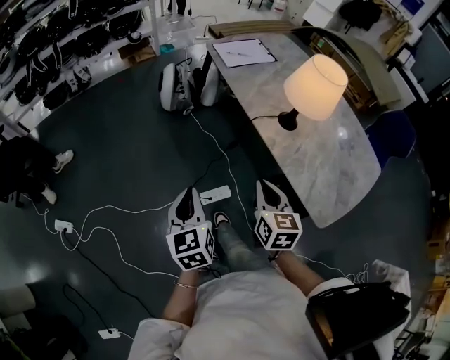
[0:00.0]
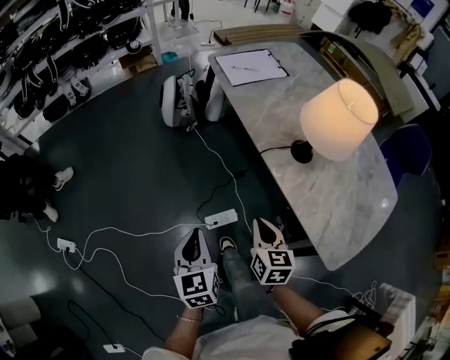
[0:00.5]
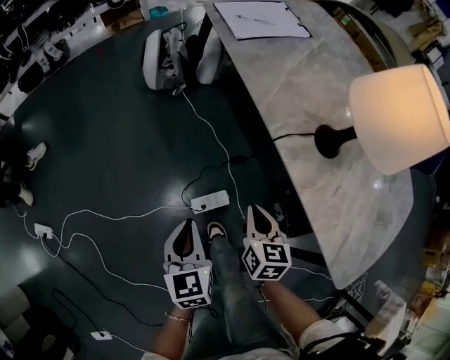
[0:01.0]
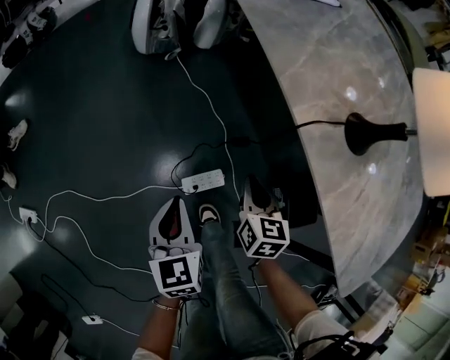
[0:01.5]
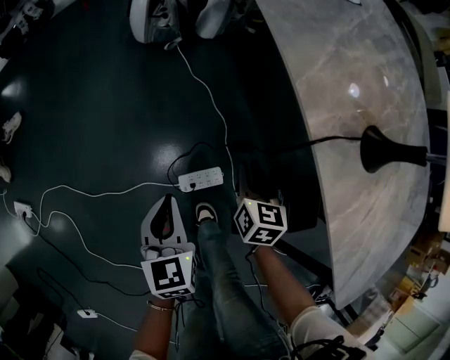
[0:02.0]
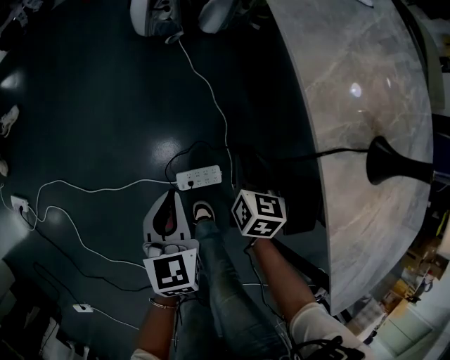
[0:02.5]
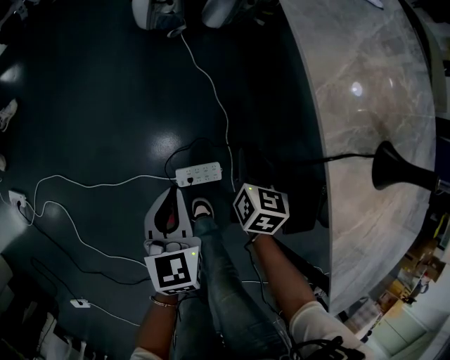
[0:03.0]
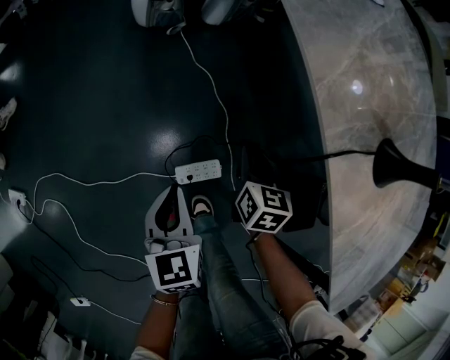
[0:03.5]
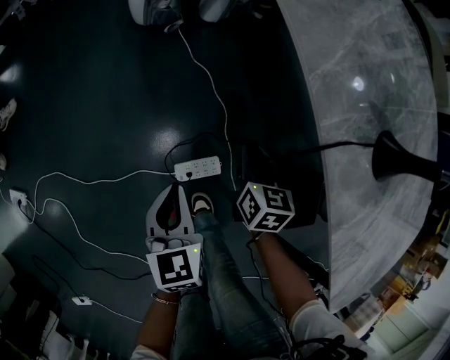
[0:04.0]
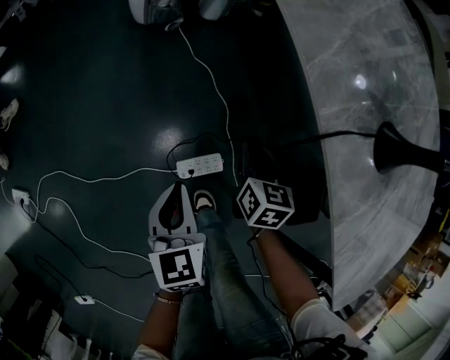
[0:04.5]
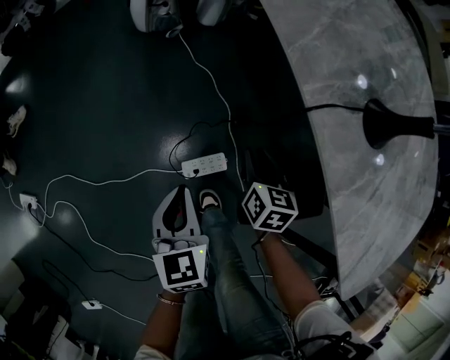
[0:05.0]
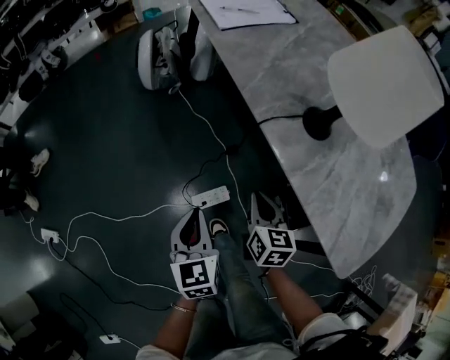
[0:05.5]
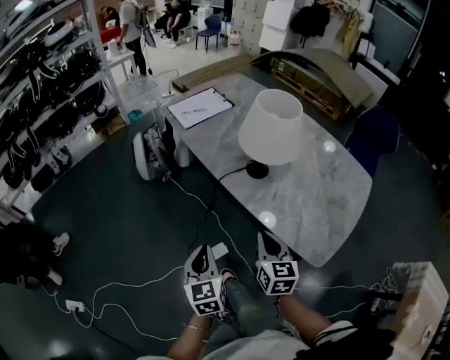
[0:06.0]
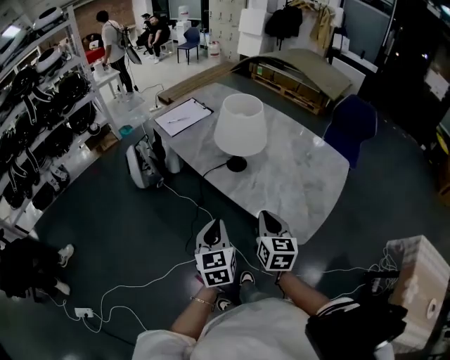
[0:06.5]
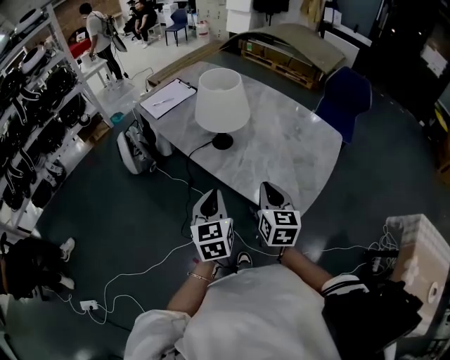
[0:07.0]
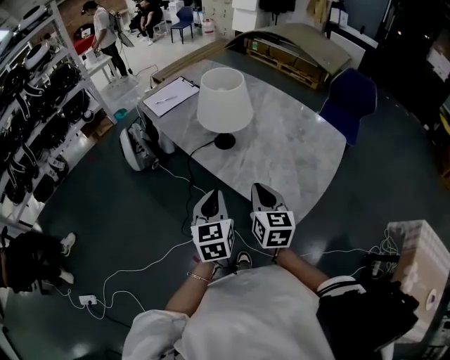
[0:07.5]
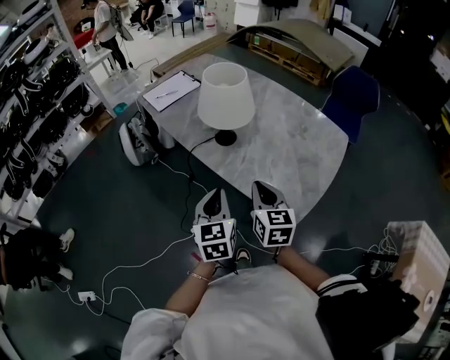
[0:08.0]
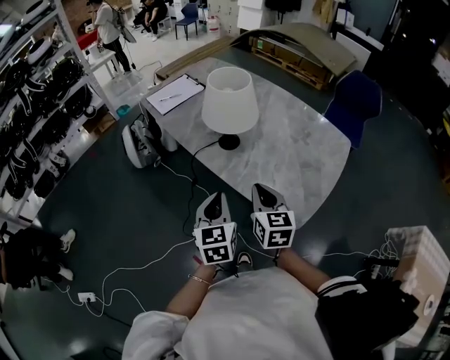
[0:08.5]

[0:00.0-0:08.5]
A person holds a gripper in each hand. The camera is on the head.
0:00.0 to 0:02.0: Both grippers travel together downward and forward, approximately 40 cm. The right gripper opens up.
0:02.0 to 0:04.0: The grippers make only small movements.
0:04.0 to 0:06.5: The right gripper moves upward and backward, roughly 60 cm, and rotates some 30 degrees; the left gripper shifts roughly 50 cm upward, backward and to the right, and changes its angle by roughly 30 degrees.
0:06.5 to 0:08.5: The left gripper shifts about 5 cm to the right.

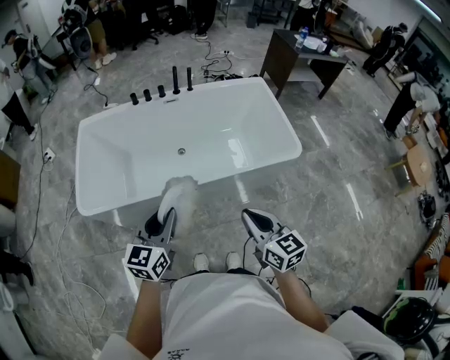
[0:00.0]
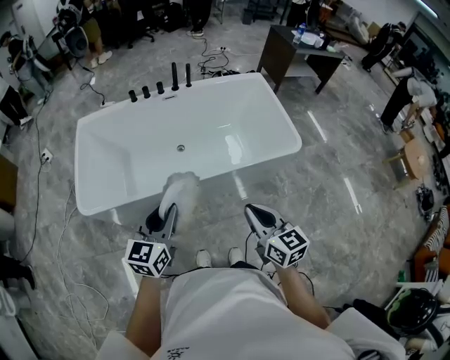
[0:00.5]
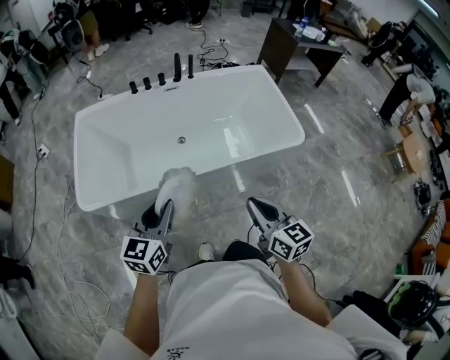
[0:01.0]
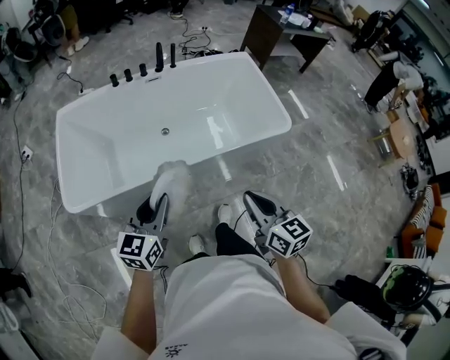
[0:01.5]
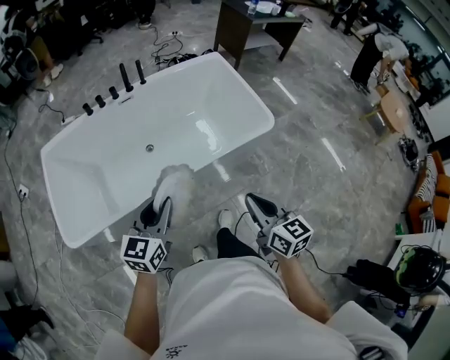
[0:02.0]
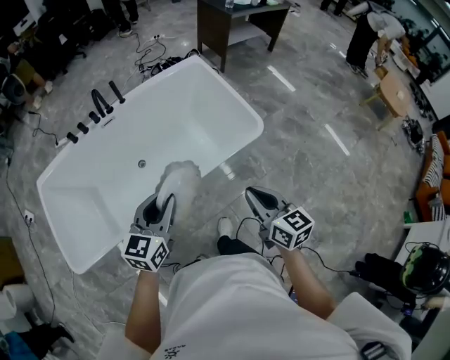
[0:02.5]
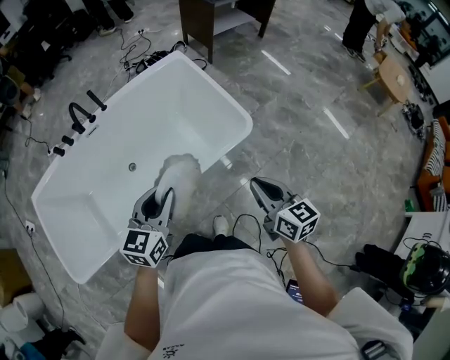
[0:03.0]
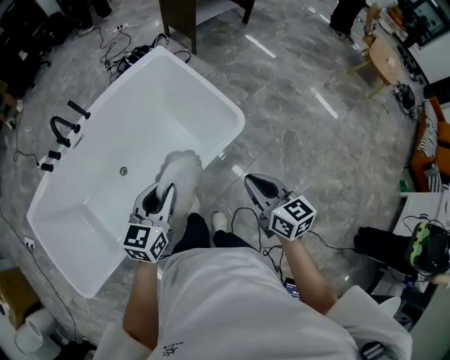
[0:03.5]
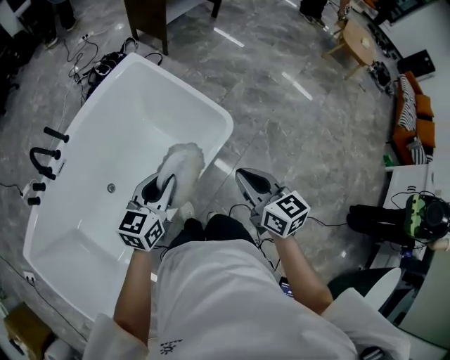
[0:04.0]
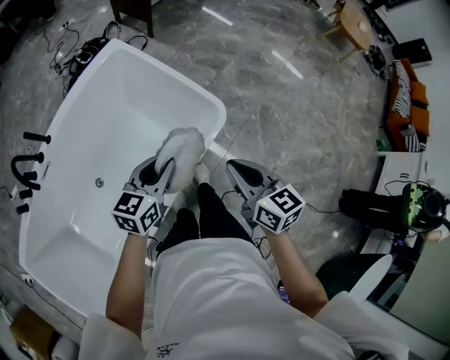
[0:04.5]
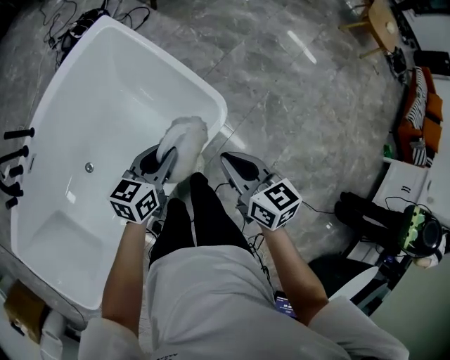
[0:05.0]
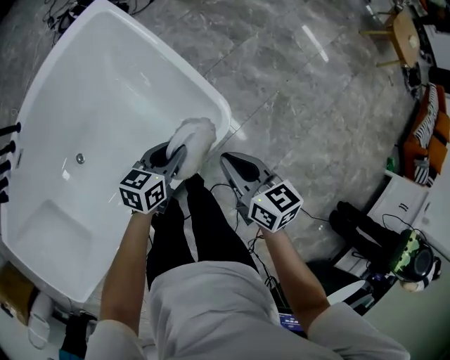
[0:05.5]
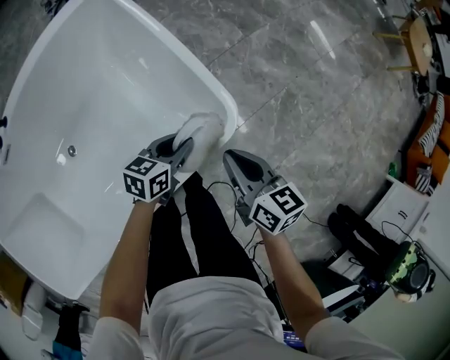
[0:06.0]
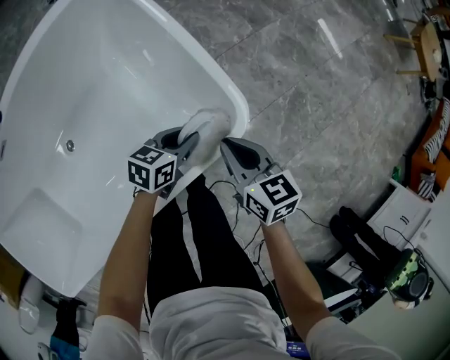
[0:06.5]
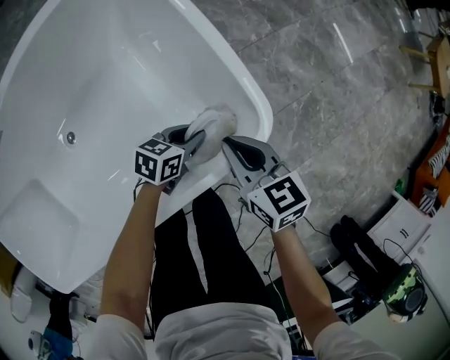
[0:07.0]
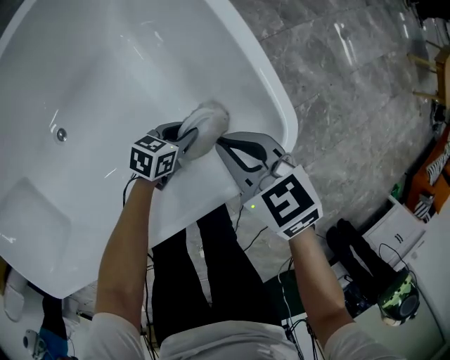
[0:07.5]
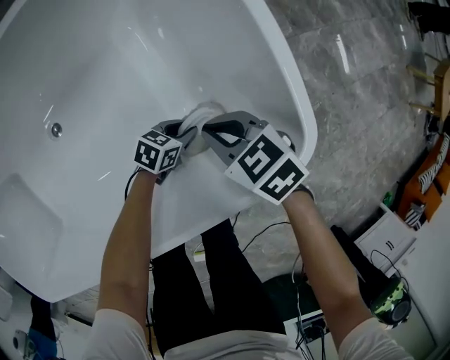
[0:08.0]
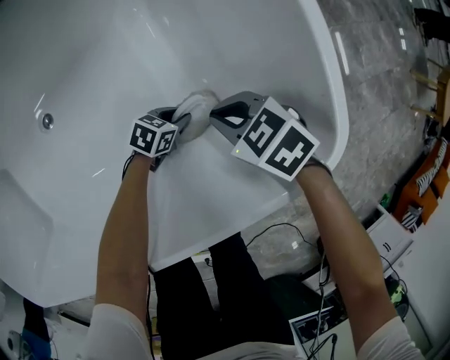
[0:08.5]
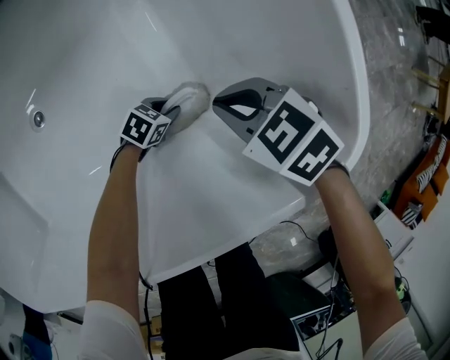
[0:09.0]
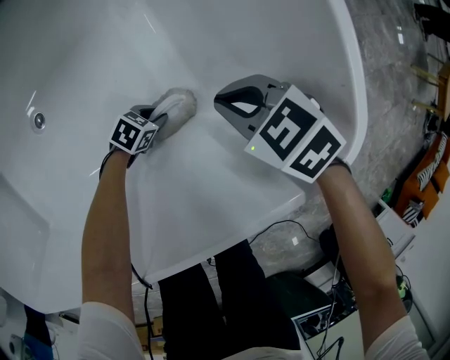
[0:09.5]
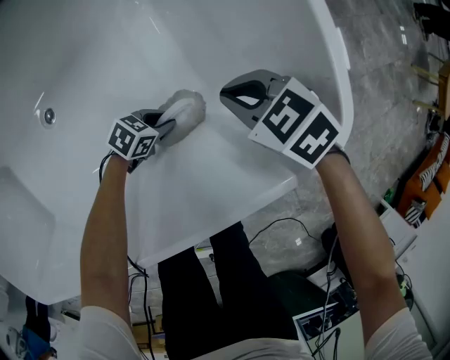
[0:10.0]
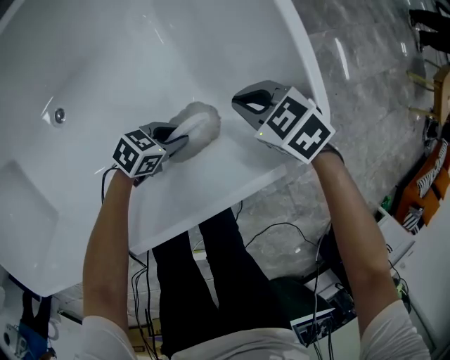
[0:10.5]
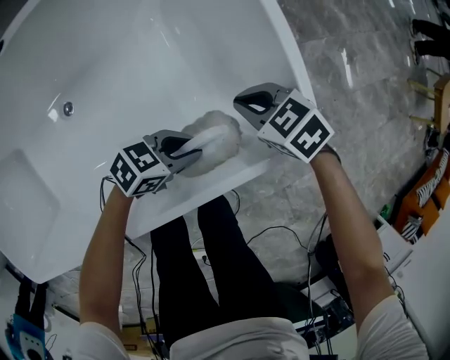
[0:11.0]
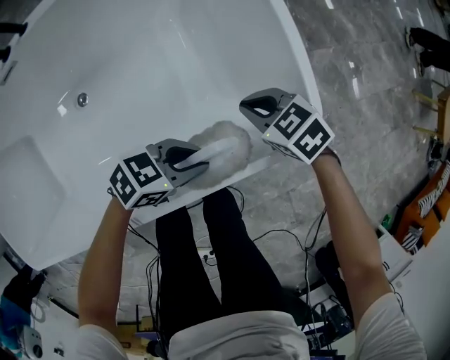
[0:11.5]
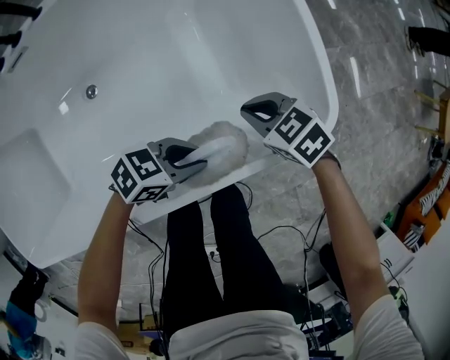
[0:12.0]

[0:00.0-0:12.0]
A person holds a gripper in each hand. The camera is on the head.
0:00.0 to 0:02.0: The right gripper changes place by roughly 5 cm.
0:02.0 to 0:04.0: The right gripper shifts by roughly 30 cm, and changes its angle by roughly 20 degrees.
0:04.0 to 0:06.0: The right gripper shifts approximately 25 cm downward.
0:06.0 to 0:08.0: The right gripper shifts some 20 cm downward, and swivels approximately 60 degrees.
0:10.0 to 0:12.0: The right gripper shifts some 10 cm upward.

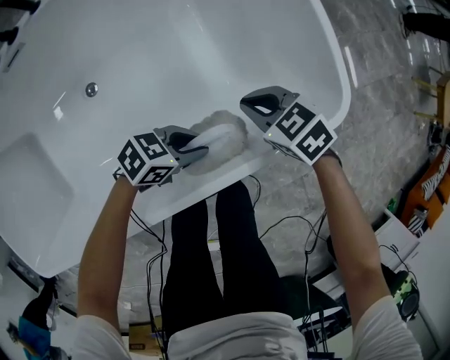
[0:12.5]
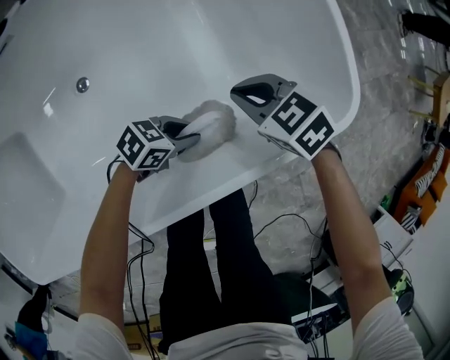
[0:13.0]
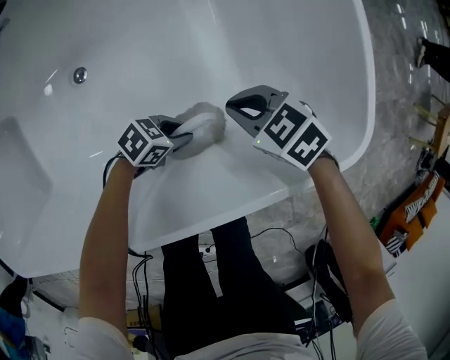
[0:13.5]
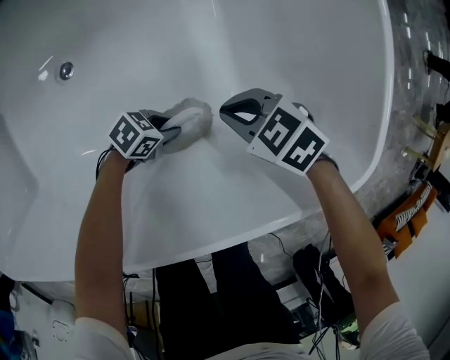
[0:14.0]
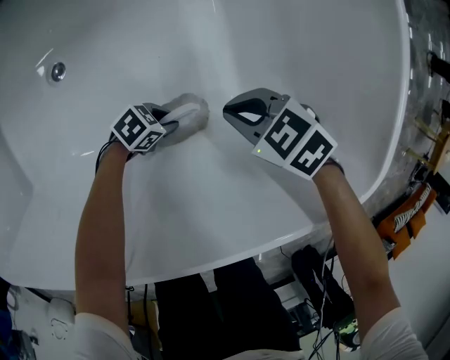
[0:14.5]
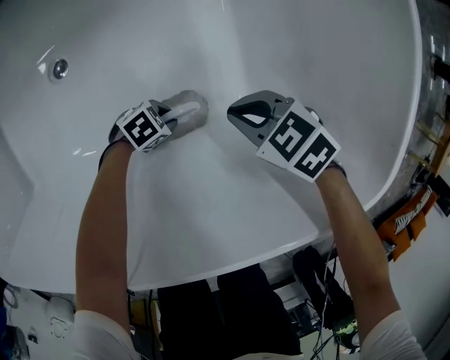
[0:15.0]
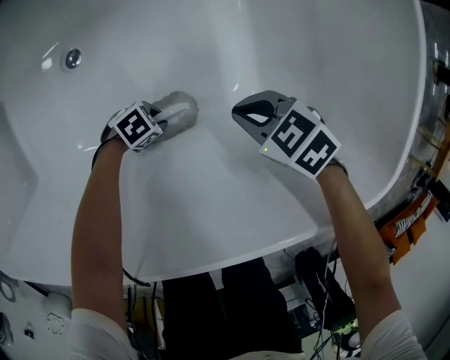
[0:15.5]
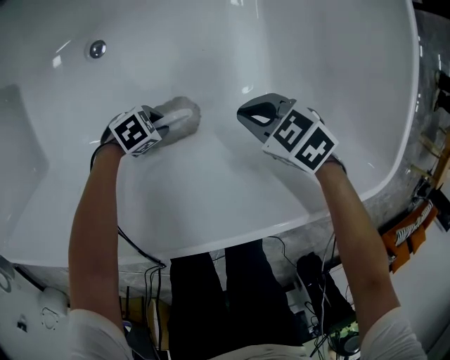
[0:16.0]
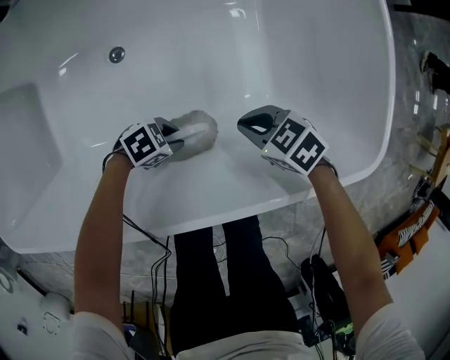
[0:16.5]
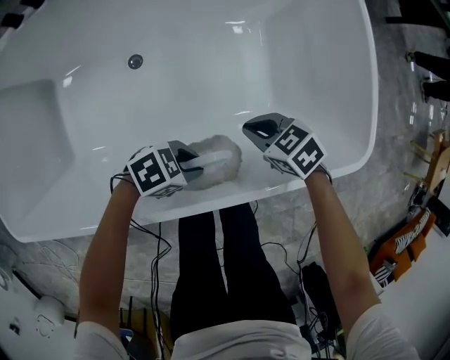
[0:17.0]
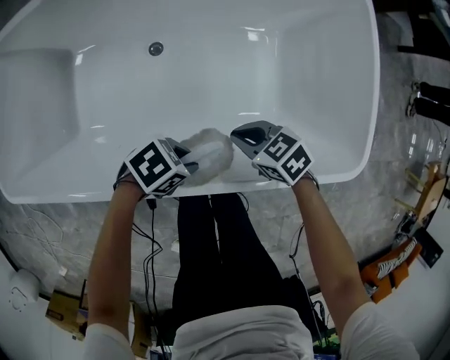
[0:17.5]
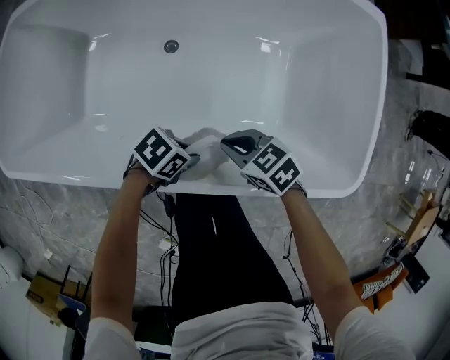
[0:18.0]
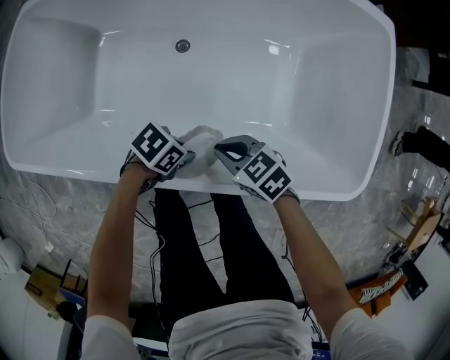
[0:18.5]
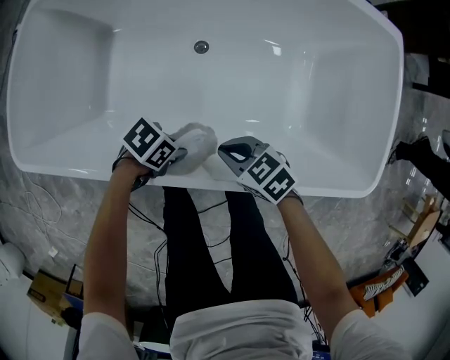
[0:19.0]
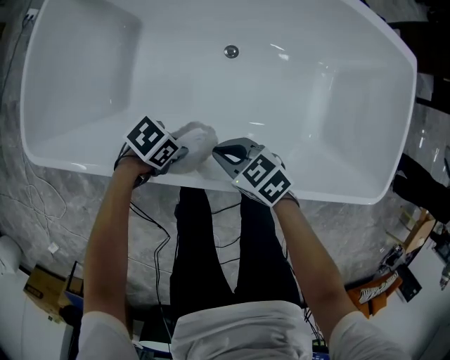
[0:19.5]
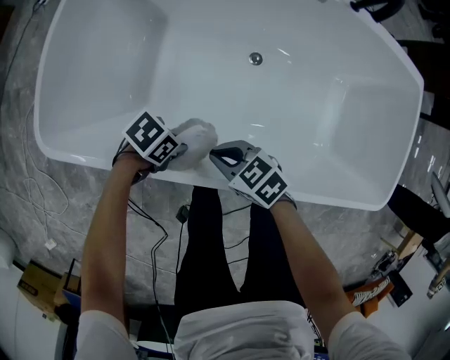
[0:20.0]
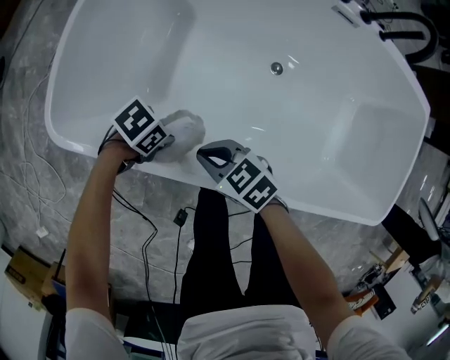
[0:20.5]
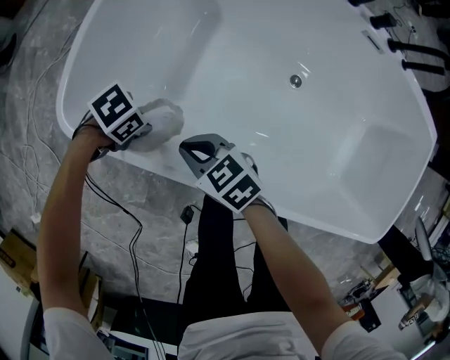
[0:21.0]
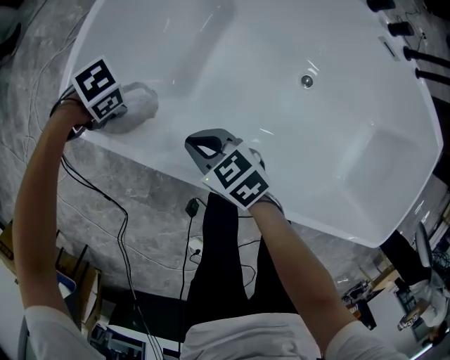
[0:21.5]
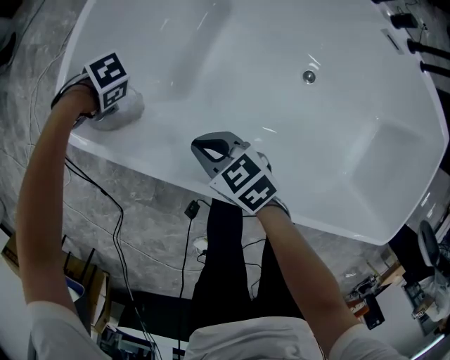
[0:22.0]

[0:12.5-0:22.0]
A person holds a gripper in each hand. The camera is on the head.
0:12.5 to 0:14.5: The right gripper shifts about 15 cm downward, and turns by some 20 degrees.
0:14.5 to 0:16.5: The right gripper changes place by about 10 cm.
0:16.5 to 0:18.0: The right gripper changes place by some 15 cm.
0:18.0 to 0:20.0: The right gripper changes place by about 35 cm.
0:20.0 to 0:22.0: The right gripper moves about 20 cm.
